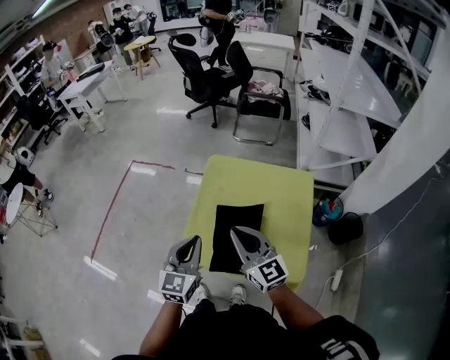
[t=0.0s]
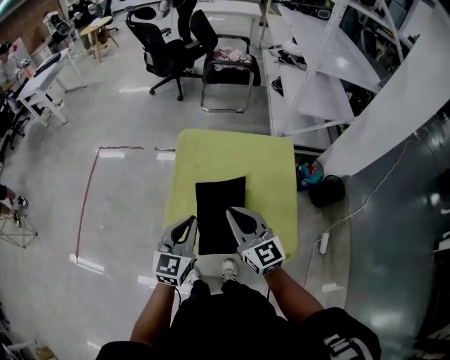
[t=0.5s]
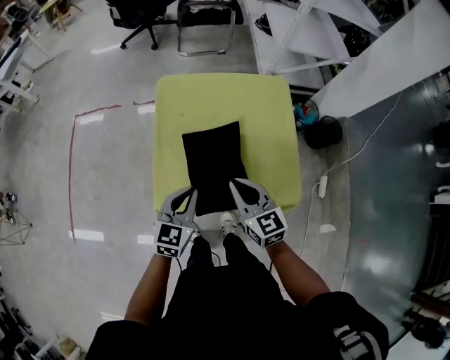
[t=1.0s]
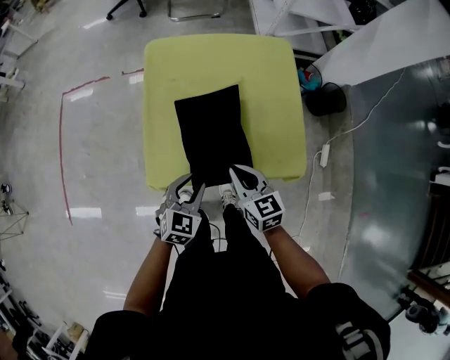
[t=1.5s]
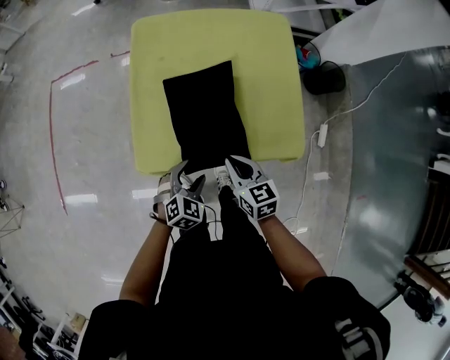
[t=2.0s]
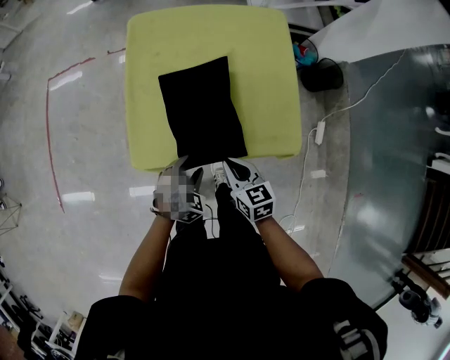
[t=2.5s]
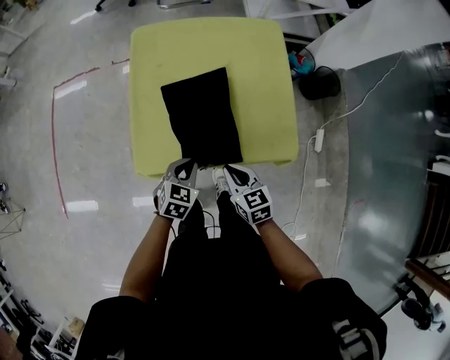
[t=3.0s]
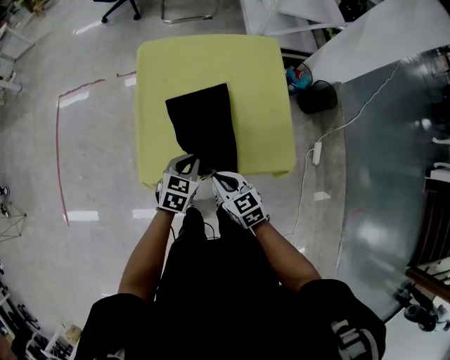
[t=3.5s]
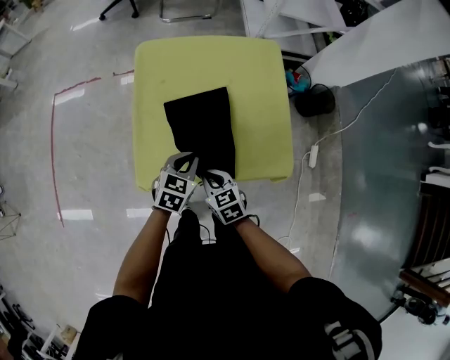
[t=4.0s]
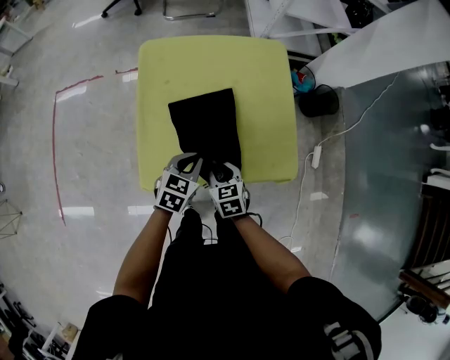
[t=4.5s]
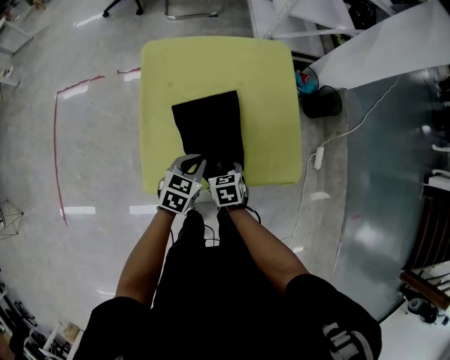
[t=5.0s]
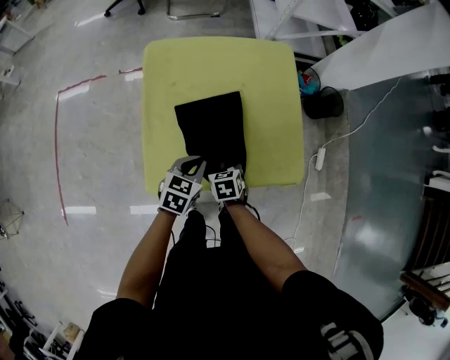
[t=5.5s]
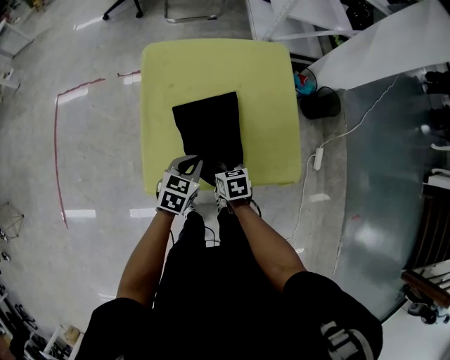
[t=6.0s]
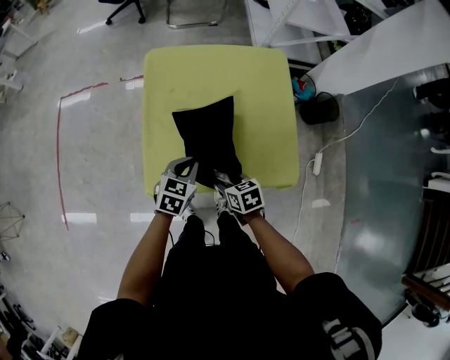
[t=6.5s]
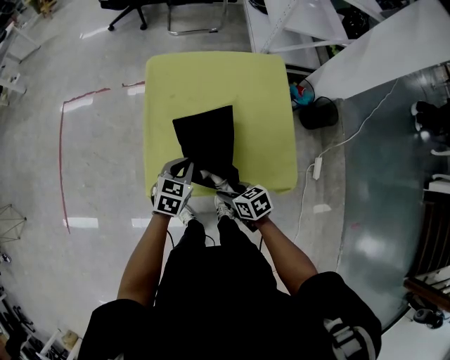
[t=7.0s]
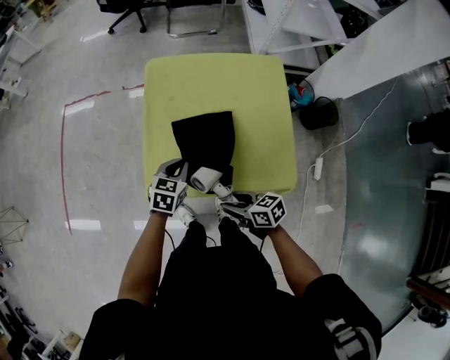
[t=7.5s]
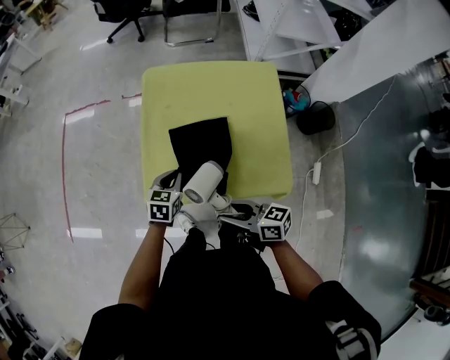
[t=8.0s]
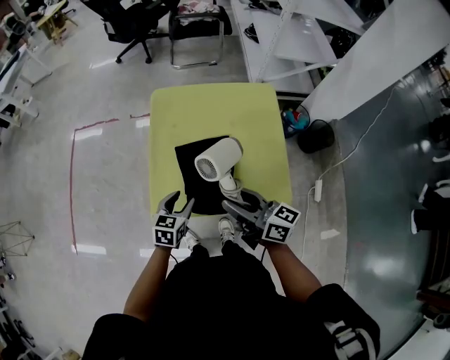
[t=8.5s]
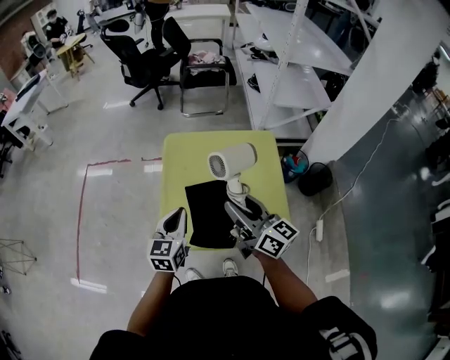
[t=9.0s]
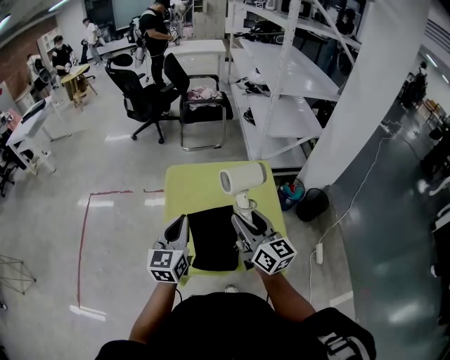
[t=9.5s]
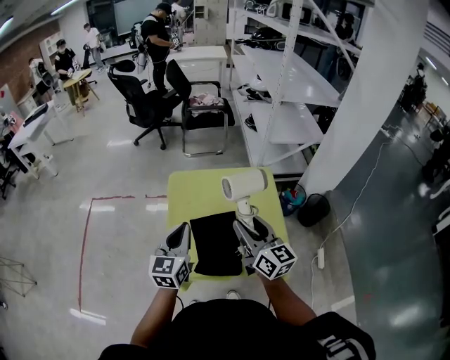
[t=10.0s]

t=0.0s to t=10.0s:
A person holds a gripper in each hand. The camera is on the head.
t=0.0s to t=2.0s: Both grippers move downward, some 30 cm. The left gripper tips its fingers downward by approximately 40 degrees, and opens its fingers; the right gripper points its fingers approximately 30 degrees further downward.
t=2.0s to t=4.0s: The right gripper heads to the left, covering roughly 5 cm. The left gripper moves forward and upward, about 15 cm, rotates approximately 20 degrees, and closes its fingers.
t=4.0s to t=6.0s: The right gripper heads downward and forward, covering roughly 10 cm, changes its angle by approximately 20 degrees, and opens up.
t=6.0s to t=8.0s: The right gripper heads upward and backward, covering about 20 cm, and tips its fingers upward by about 40 degrees. Meanwhile the left gripper moves roughly 5 cm.
t=8.0s to t=10.0s: The left gripper shifts approximately 25 cm upward, angles its fingers upward, by approximately 40 degrees, and opens, then closes again. Meanwhile the right gripper heads upward and forward, covering some 25 cm, and rotates approximately 50 degrees.

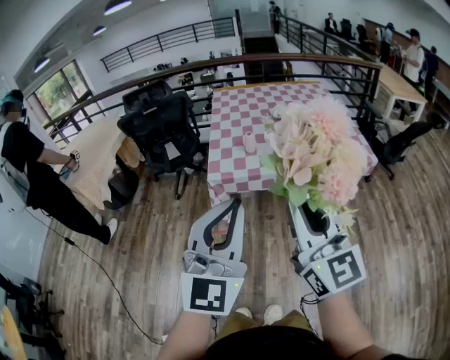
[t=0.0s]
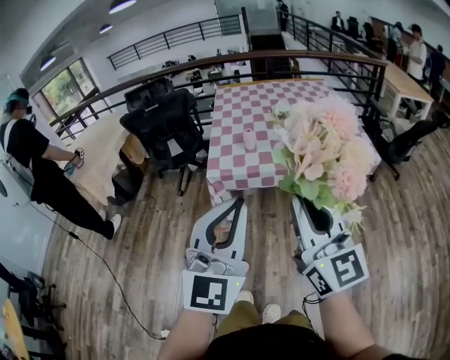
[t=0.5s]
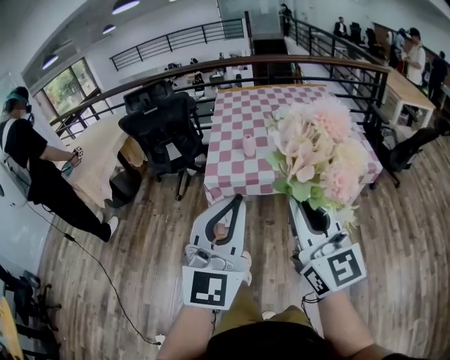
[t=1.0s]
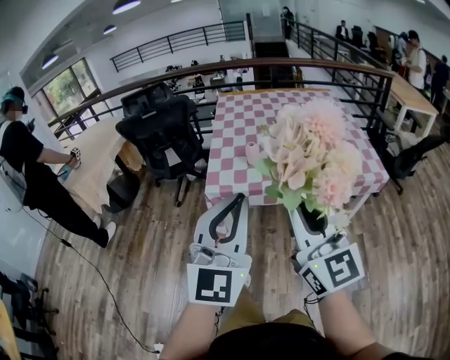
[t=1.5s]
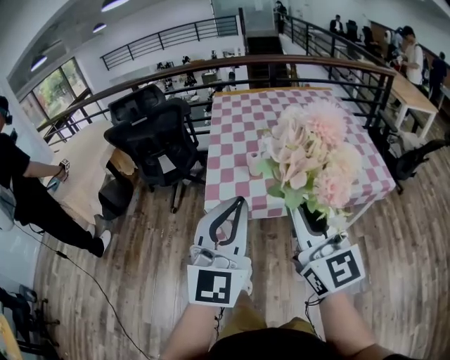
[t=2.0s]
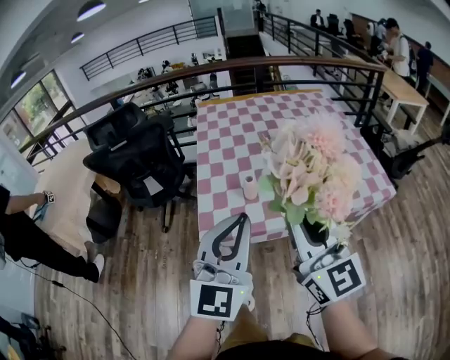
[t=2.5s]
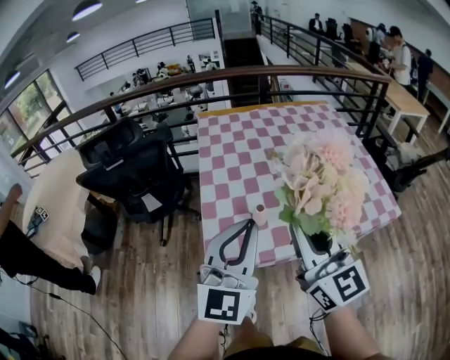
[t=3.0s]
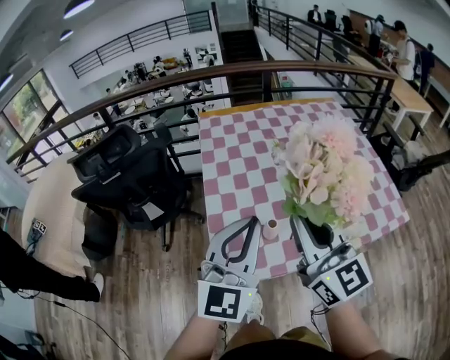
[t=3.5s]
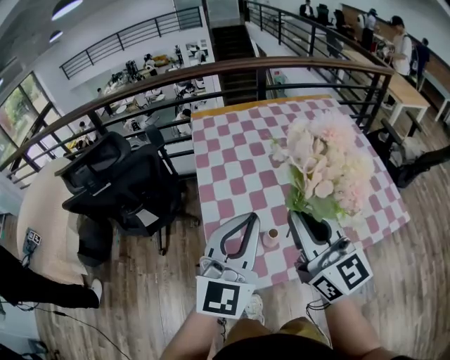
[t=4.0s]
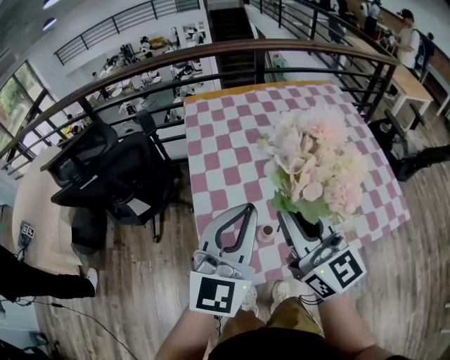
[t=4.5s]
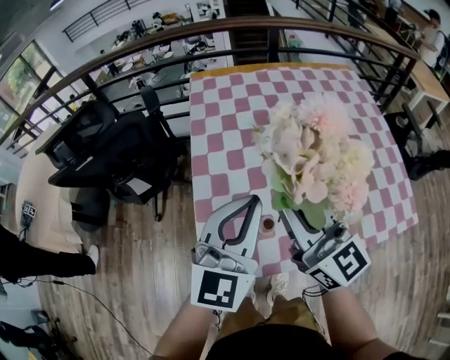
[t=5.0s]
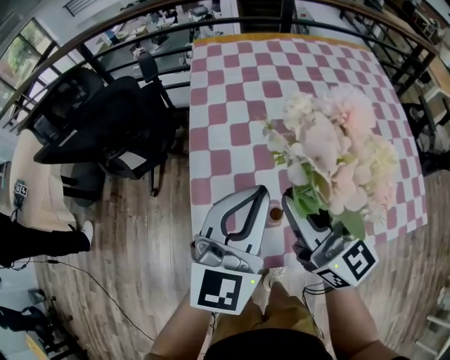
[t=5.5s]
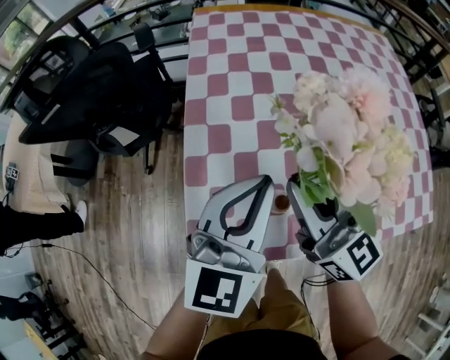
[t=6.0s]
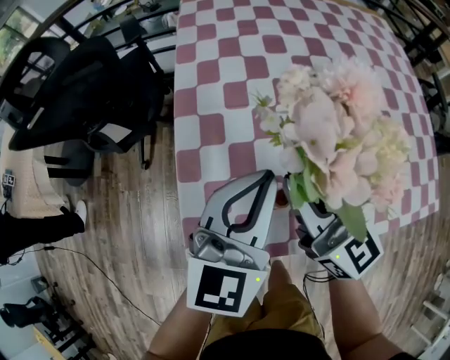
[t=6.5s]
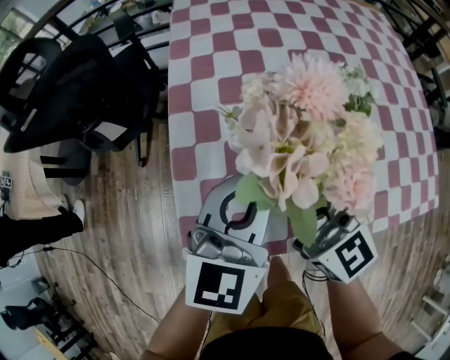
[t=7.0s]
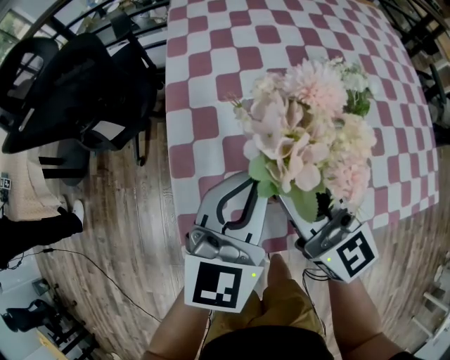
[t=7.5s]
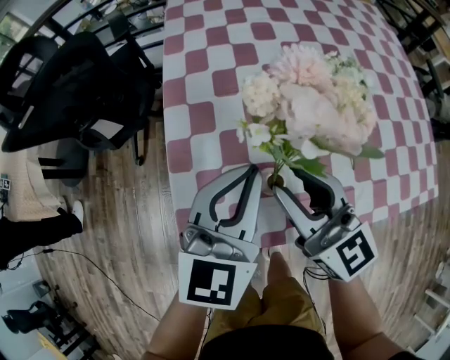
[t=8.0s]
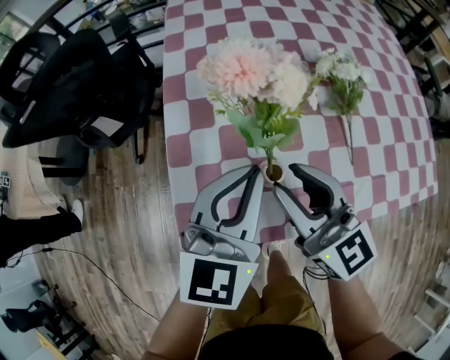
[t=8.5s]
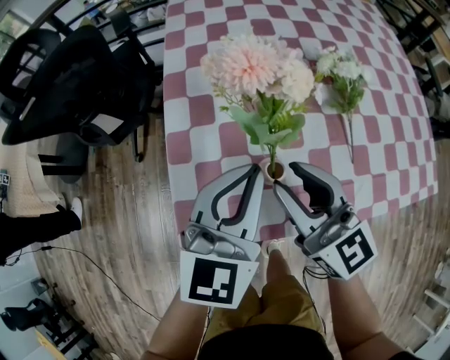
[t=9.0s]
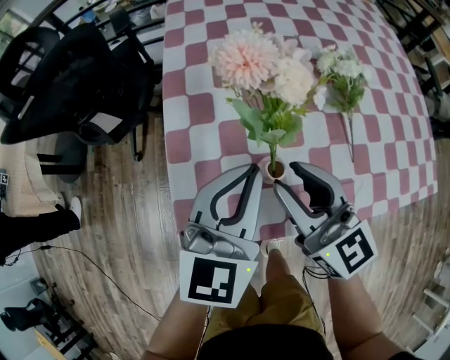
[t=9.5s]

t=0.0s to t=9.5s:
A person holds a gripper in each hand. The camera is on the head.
t=0.0s to t=2.0s: The two grippers go roughly 20 cm forward.
t=2.0s to t=4.0s: The two grippers go some 35 cm forward.
t=4.0s to t=5.5s: The grippers both shift downward and forward by approximately 15 cm.
t=5.5s to t=7.5s: The two grippers go approximately 10 cm downward.
t=7.5s to t=9.5s: The grippers move only a little.

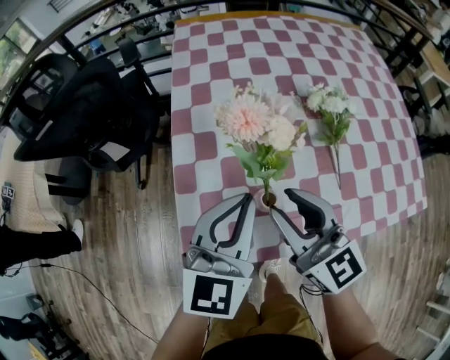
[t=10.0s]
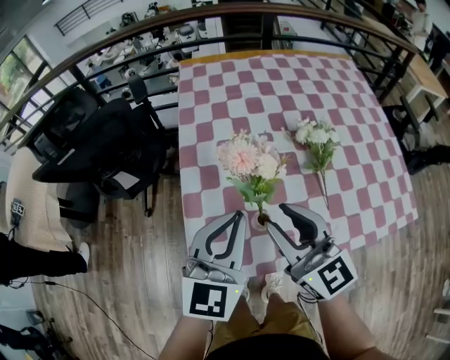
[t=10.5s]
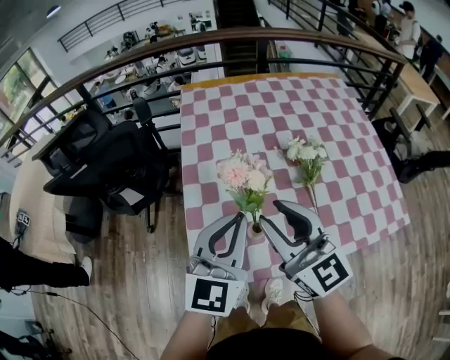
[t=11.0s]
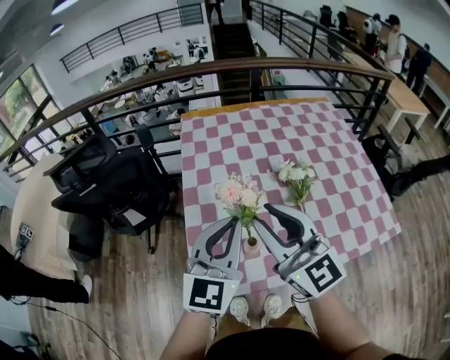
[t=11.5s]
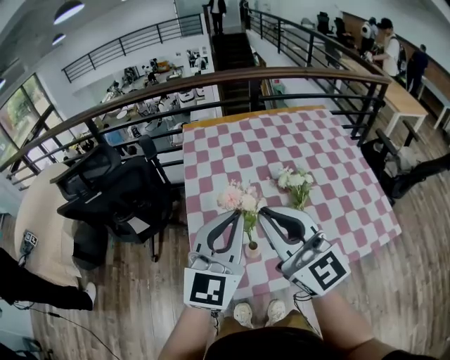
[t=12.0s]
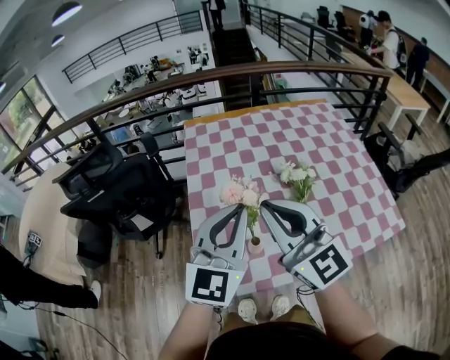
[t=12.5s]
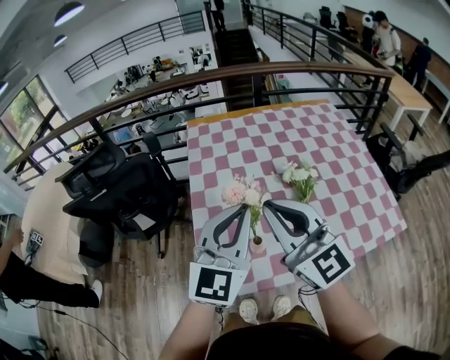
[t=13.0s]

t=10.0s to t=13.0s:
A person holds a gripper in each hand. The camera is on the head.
t=10.0s to t=11.5s: The grippers both shift upward by about 20 cm.
t=11.5s to t=13.0s: The right gripper closes up.

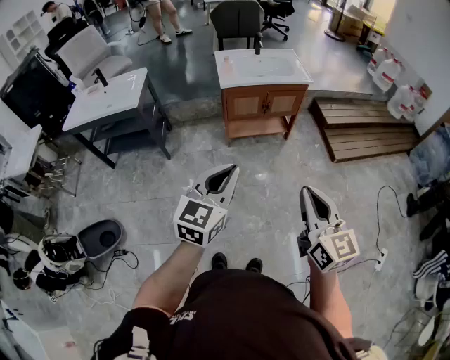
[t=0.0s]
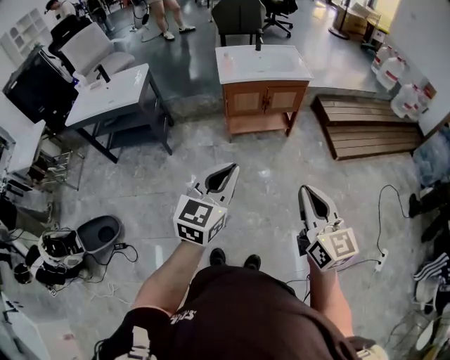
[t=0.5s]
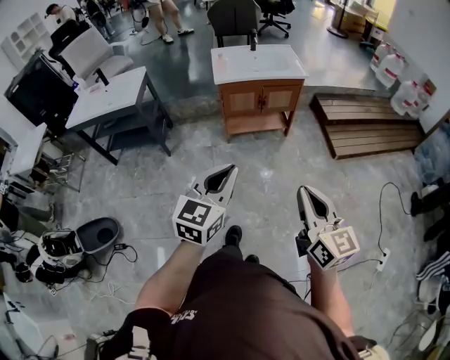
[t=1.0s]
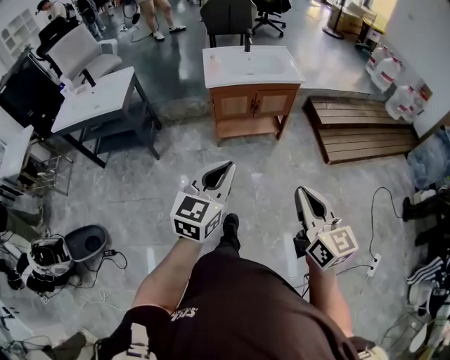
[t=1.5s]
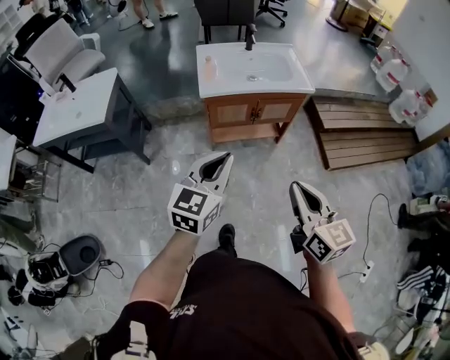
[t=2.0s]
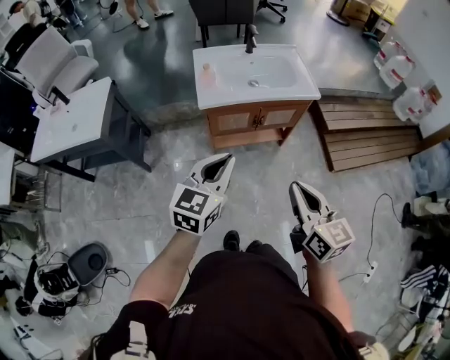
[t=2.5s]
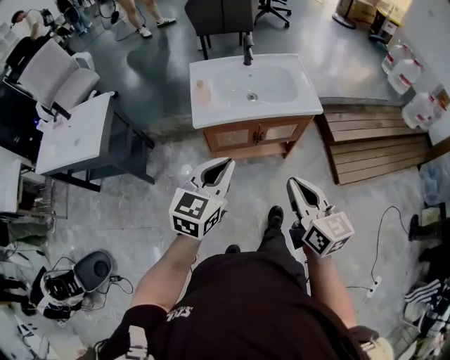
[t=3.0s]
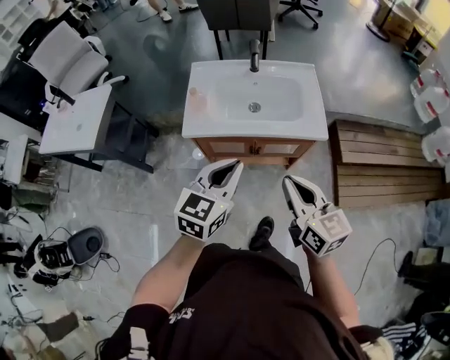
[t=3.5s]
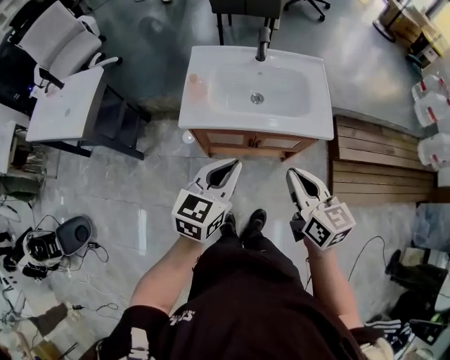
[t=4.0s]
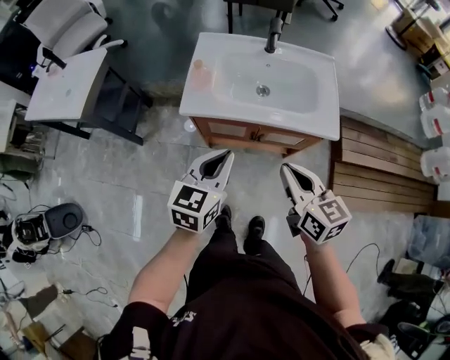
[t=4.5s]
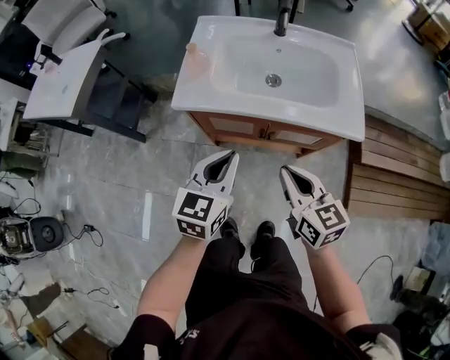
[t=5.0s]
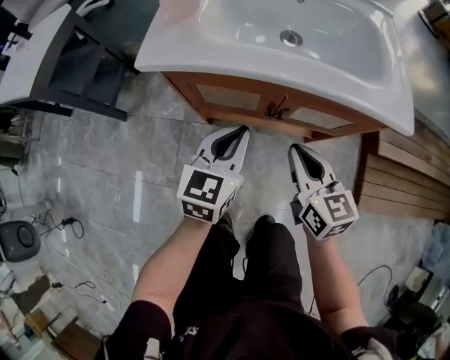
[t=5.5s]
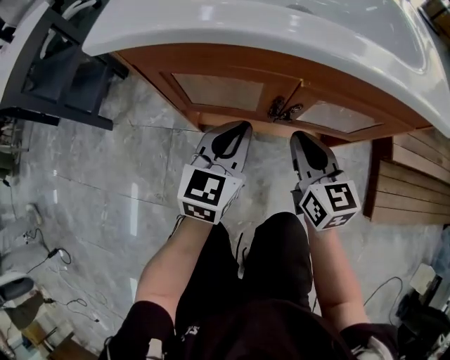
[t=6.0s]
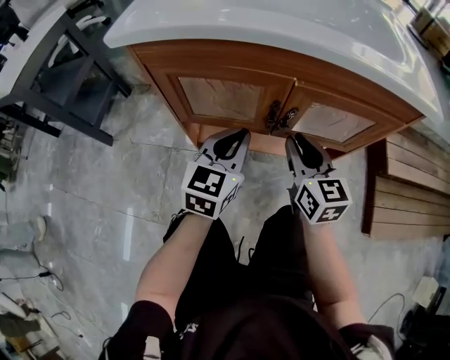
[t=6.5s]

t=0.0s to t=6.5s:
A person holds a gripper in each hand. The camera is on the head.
t=0.0s to t=2.0s: The two grippers go about 30 cm forward.
t=2.0s to t=4.5s: The two grippers go some 35 cm forward. The left gripper turns by roughly 20 degrees; the right gripper turns by some 20 degrees.
t=4.5s to t=6.5s: The grippers both shift downward by approximately 50 cm.
